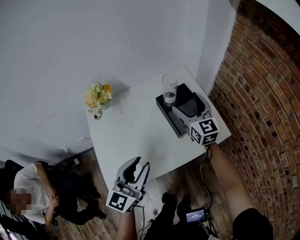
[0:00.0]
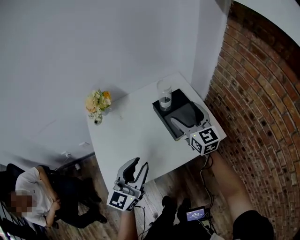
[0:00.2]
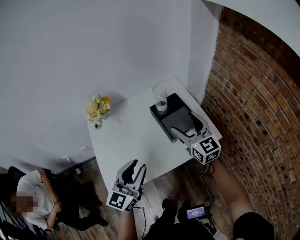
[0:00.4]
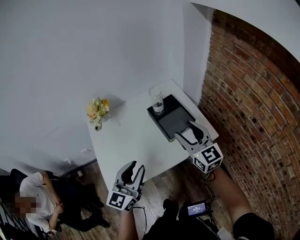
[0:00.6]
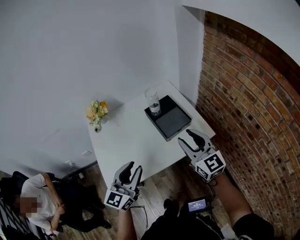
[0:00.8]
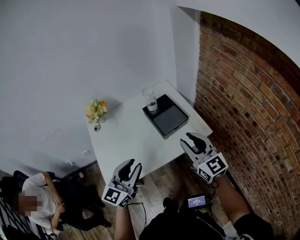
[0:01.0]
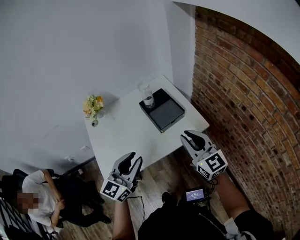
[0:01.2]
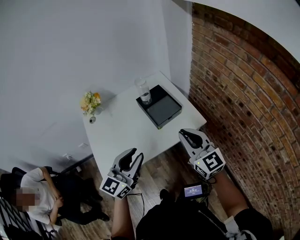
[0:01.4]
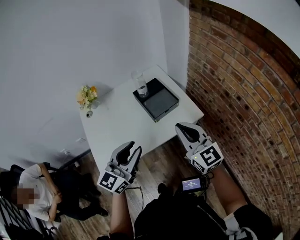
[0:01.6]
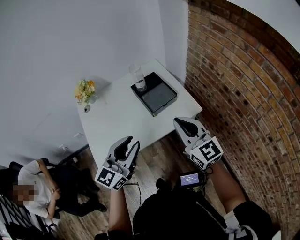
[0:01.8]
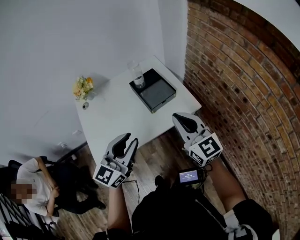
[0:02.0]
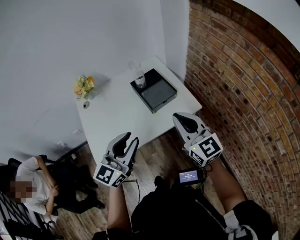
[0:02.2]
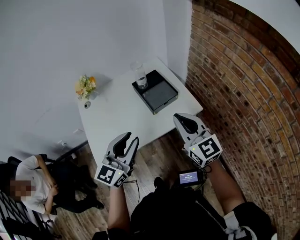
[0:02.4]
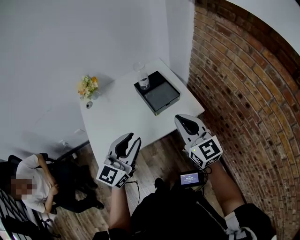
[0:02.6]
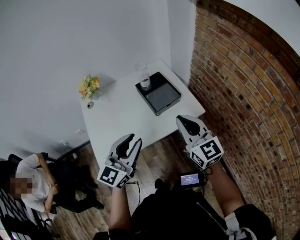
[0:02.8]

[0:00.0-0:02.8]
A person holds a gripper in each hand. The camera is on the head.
0:00.0 to 0:01.4: The left gripper travels to the right and backward by roughly 10 cm; the right gripper heads backward, covering about 25 cm, and closes up.
0:01.4 to 0:02.8: There are only small adjustments of the grippers.

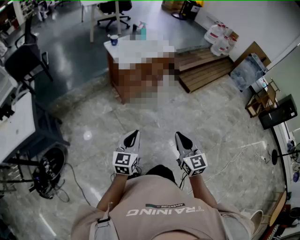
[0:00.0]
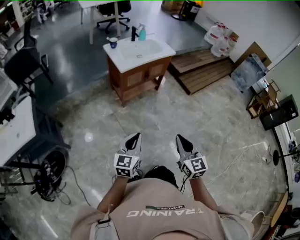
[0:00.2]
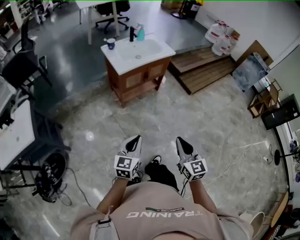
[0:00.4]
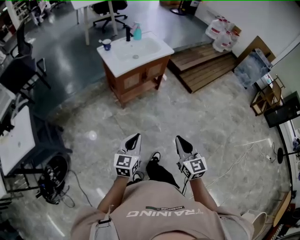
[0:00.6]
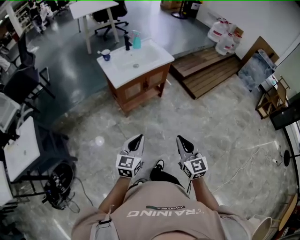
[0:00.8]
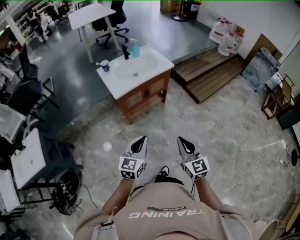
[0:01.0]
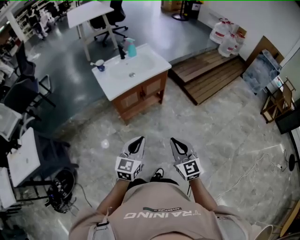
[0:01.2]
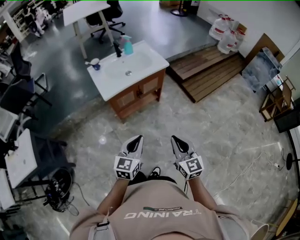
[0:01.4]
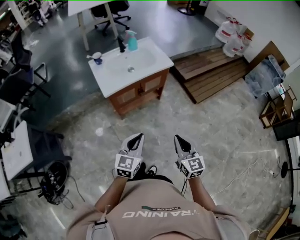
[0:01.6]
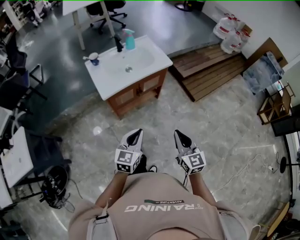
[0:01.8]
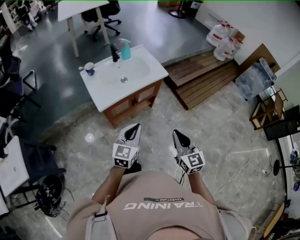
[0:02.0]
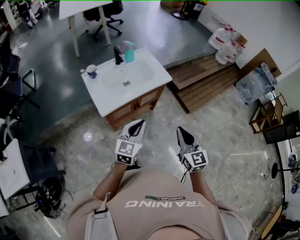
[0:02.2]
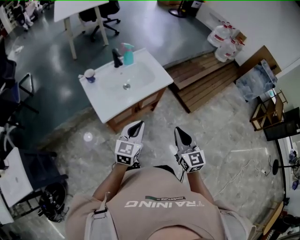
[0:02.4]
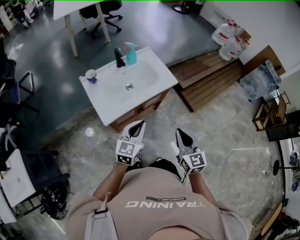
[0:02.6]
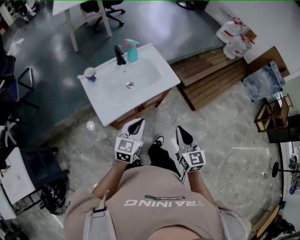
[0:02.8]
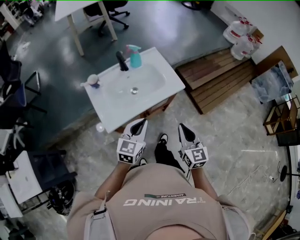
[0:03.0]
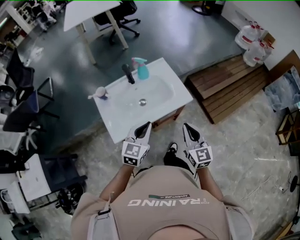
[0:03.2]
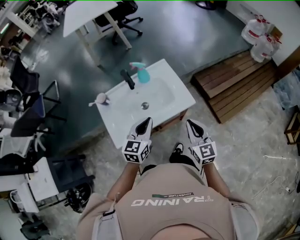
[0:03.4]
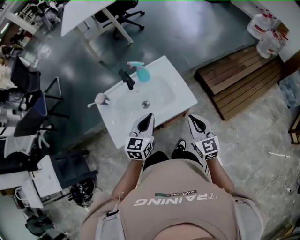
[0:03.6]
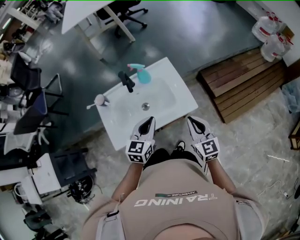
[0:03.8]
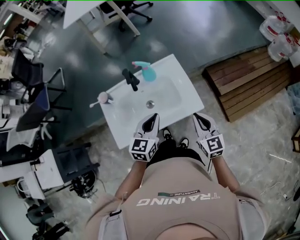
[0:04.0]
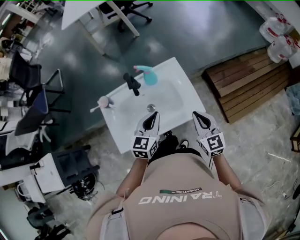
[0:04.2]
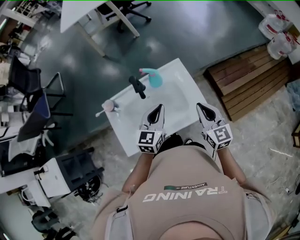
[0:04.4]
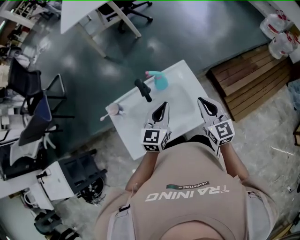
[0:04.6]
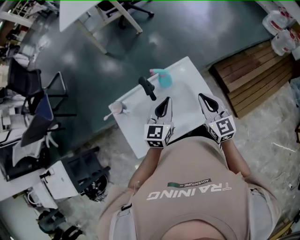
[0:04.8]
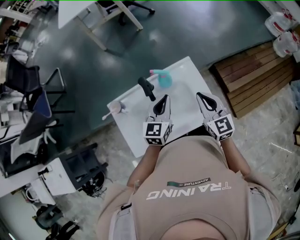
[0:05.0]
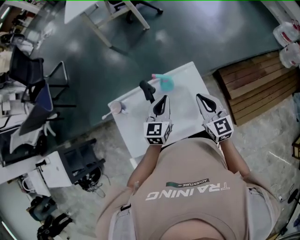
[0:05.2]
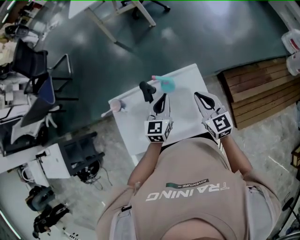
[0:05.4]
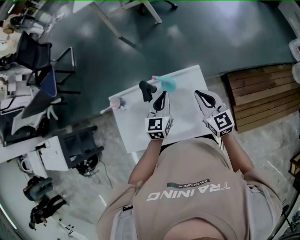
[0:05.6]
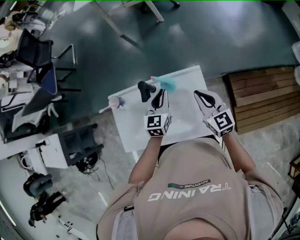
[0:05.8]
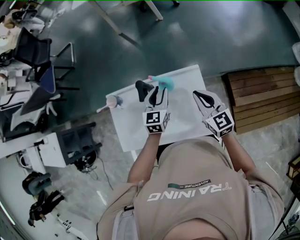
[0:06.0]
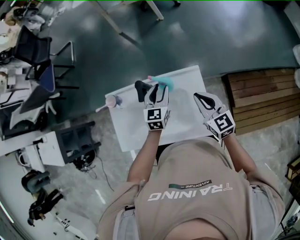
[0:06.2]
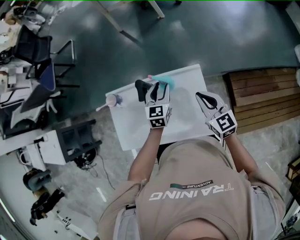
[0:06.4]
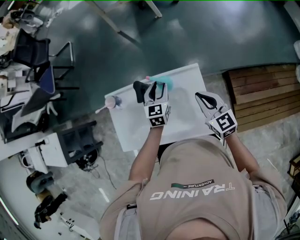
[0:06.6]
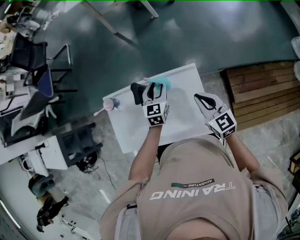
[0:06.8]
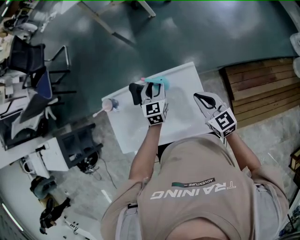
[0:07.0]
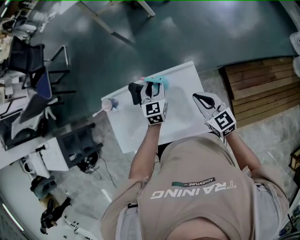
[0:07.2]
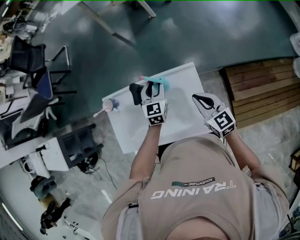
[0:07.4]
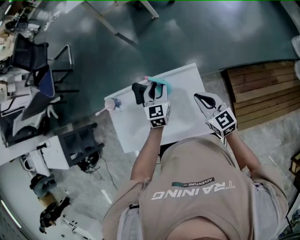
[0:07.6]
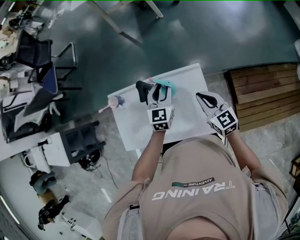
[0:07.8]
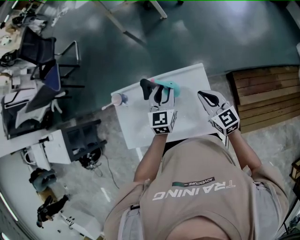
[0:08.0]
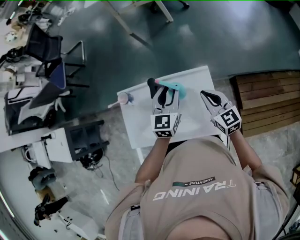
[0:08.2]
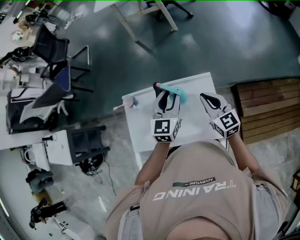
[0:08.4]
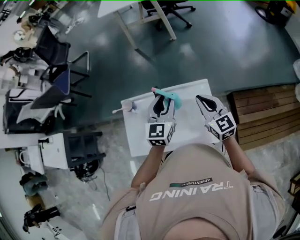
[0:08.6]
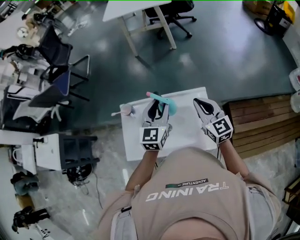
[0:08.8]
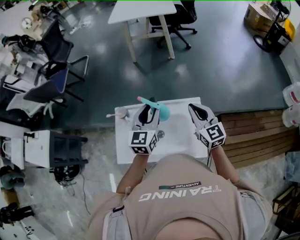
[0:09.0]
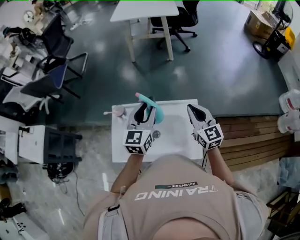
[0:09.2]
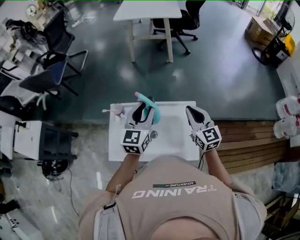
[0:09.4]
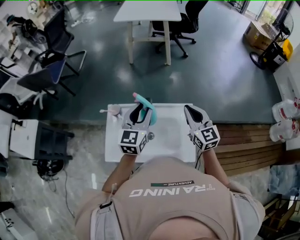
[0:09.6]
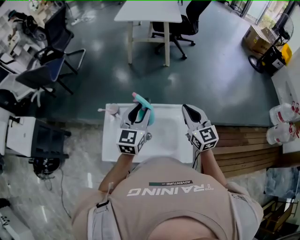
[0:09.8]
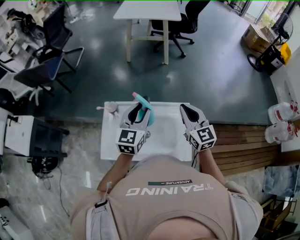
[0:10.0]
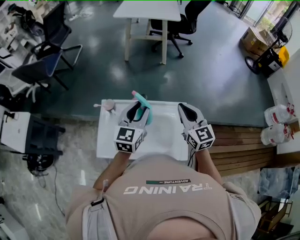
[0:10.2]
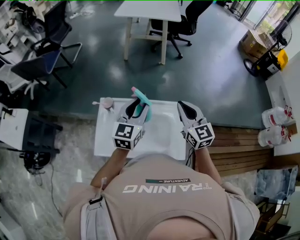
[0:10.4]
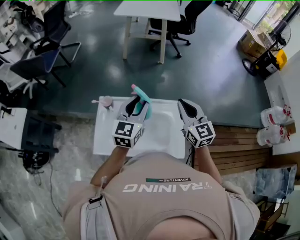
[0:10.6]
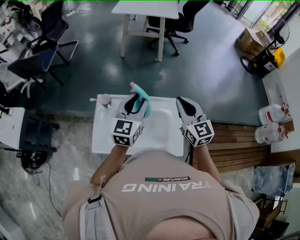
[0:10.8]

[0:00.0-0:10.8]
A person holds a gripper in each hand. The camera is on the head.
0:00.0 to 0:01.6: The two grippers go roughly 30 cm forward and to the right.
0:01.6 to 0:03.0: The two grippers go roughly 30 cm forward.
0:03.0 to 0:04.6: Both grippers move forward, some 30 cm.
0:04.6 to 0:06.2: The right gripper ends up some 10 cm from where it was, and rotates roughly 30 degrees, while the left gripper moves approximately 15 cm, turns by approximately 30 degrees, and opens.
0:06.2 to 0:07.8: The grippers move only a little.
0:07.8 to 0:09.2: The right gripper is displaced upward by roughly 10 cm. Meanwhile the left gripper shifts roughly 20 cm upward and to the left.
0:09.2 to 0:10.8: The right gripper goes approximately 5 cm upward.

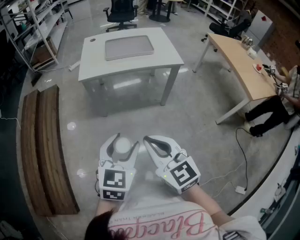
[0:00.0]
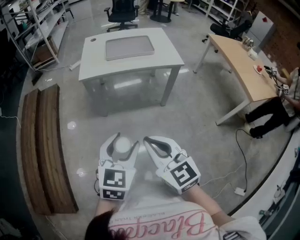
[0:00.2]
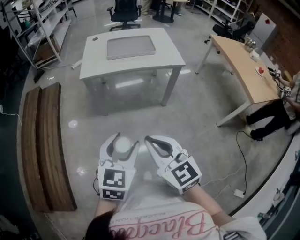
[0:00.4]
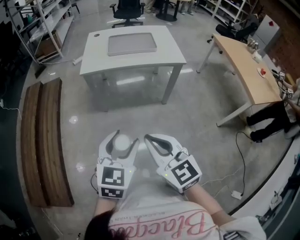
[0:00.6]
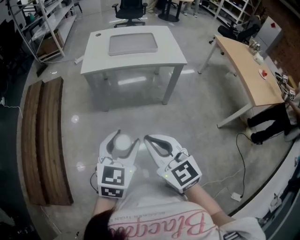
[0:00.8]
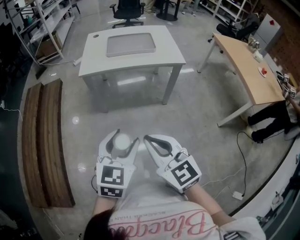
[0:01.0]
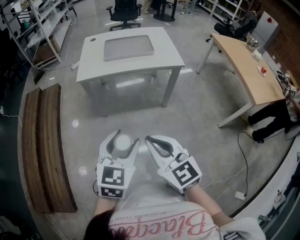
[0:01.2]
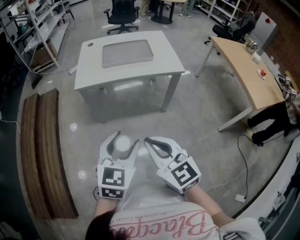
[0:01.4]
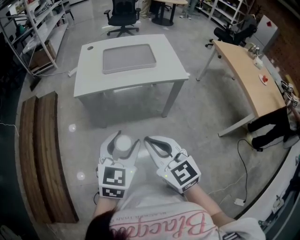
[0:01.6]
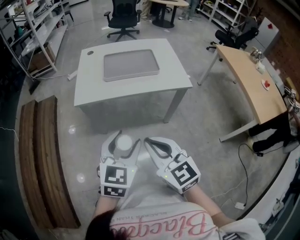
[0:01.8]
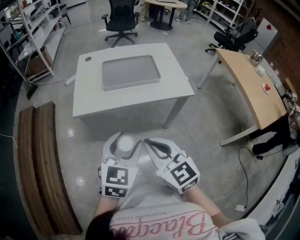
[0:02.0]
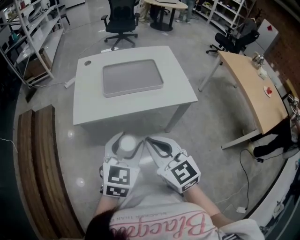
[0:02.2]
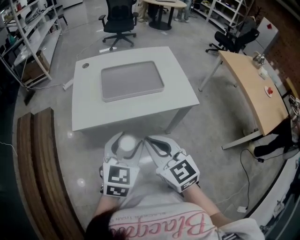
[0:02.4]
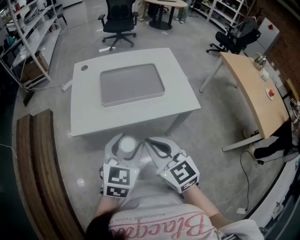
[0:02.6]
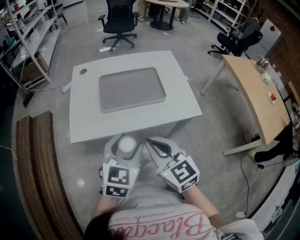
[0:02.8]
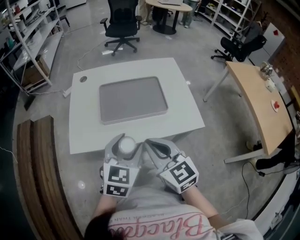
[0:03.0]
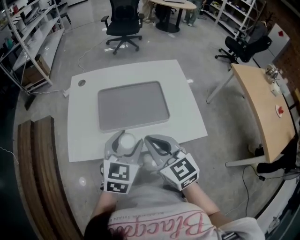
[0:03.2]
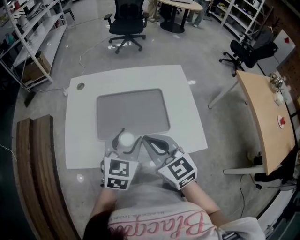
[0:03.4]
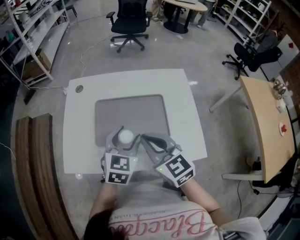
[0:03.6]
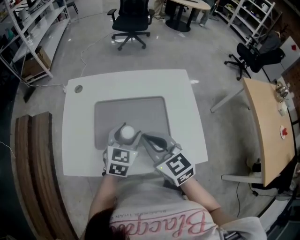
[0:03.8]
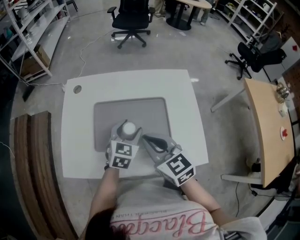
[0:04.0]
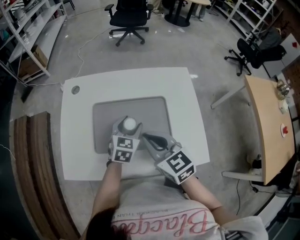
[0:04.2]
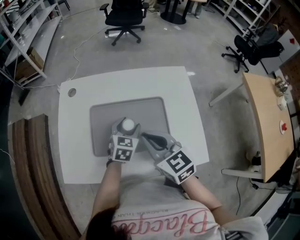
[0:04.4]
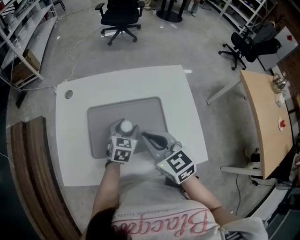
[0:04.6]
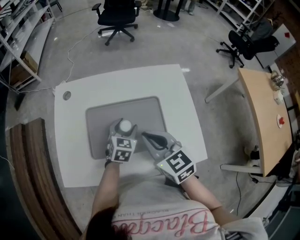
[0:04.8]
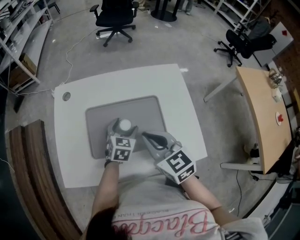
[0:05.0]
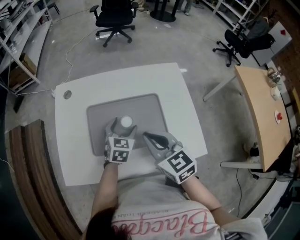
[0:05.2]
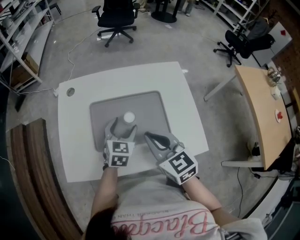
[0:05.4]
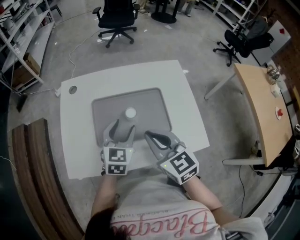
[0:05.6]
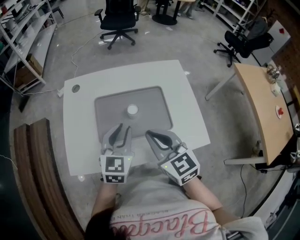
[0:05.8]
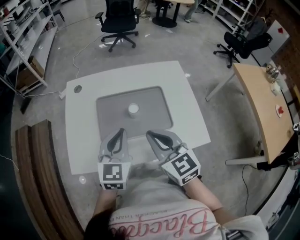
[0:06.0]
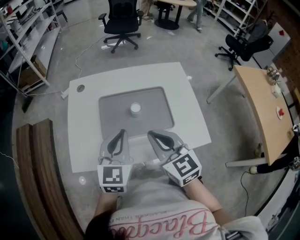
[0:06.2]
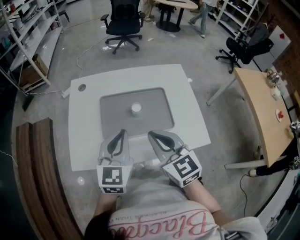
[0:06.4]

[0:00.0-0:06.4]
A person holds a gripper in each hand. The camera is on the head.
0:00.0 to 0:01.6: Both grippers move forward, approximately 10 cm.
0:01.6 to 0:03.2: Both grippers travel together forward, roughly 30 cm.
0:03.2 to 0:04.8: The left gripper travels forward and downward by about 25 cm, while the right gripper moves forward, about 10 cm.
0:04.8 to 0:06.4: The left gripper heads upward, backward and to the left, covering approximately 25 cm, changes its angle by approximately 20 degrees, and closes; the right gripper travels backward by some 5 cm.

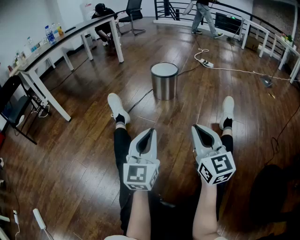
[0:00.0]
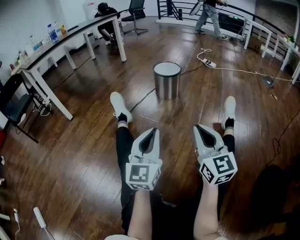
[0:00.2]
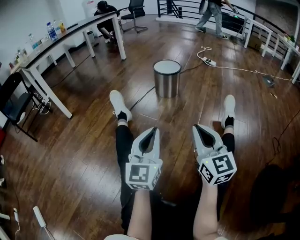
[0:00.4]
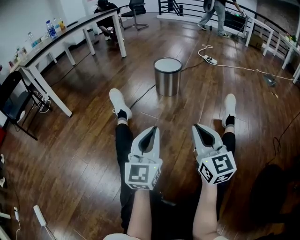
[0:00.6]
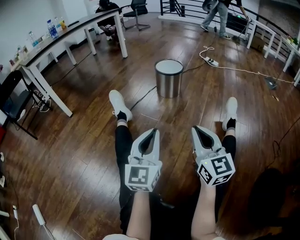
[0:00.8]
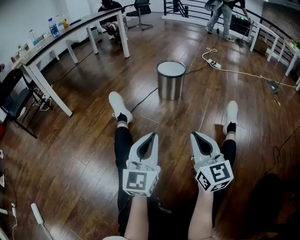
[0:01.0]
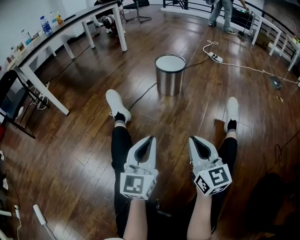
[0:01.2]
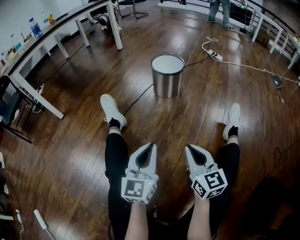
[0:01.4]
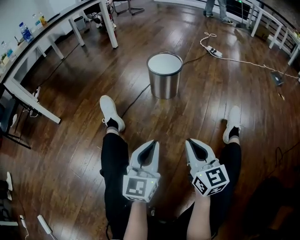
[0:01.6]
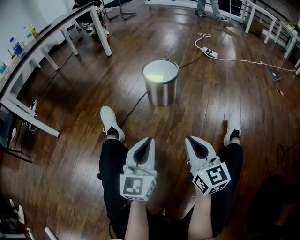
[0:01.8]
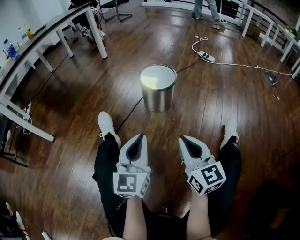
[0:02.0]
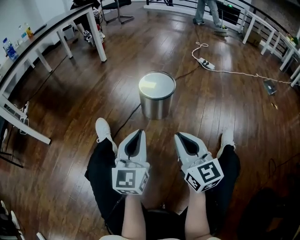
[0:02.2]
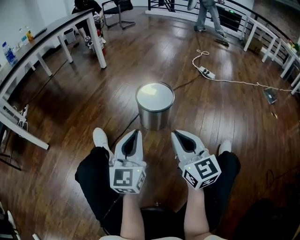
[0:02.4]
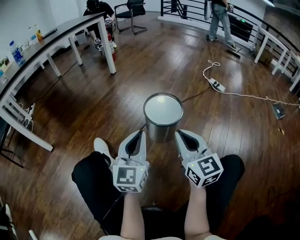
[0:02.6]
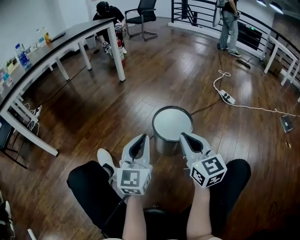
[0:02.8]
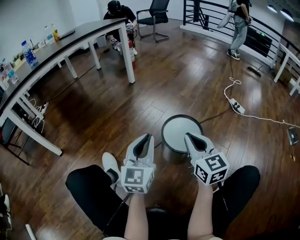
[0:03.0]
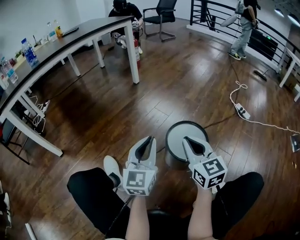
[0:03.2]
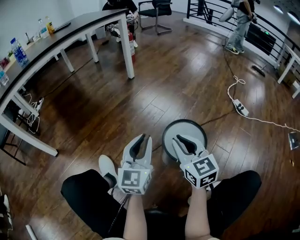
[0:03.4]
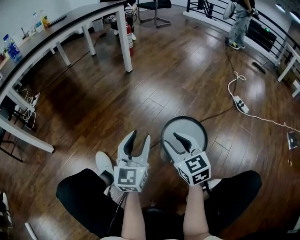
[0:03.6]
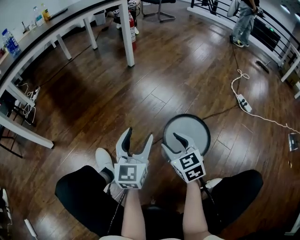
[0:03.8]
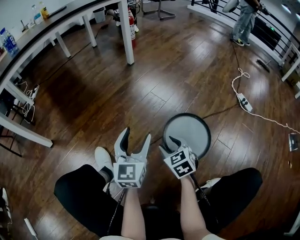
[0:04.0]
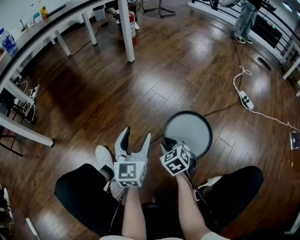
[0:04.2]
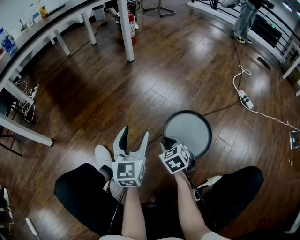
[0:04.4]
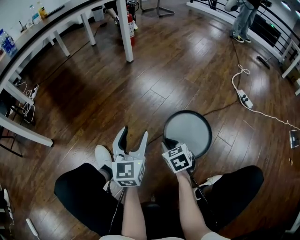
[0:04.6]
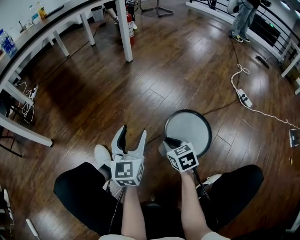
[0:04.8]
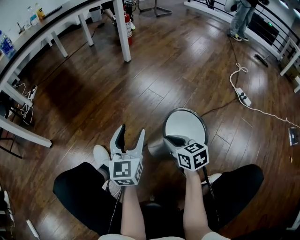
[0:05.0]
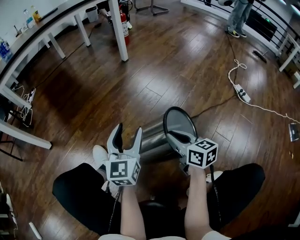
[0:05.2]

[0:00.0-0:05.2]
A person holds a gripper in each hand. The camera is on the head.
0:00.0 to 0:01.8: Both grippers travel together forward, some 20 cm.
0:01.8 to 0:03.4: The two grippers travel together, forward, about 40 cm. The right gripper swivels some 20 degrees.
0:03.4 to 0:05.2: The left gripper travels downward by about 5 cm, and opens up; the right gripper travels downward by approximately 10 cm, rotates some 30 degrees, and opens and closes again.
